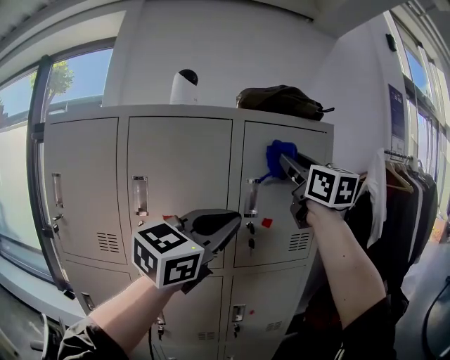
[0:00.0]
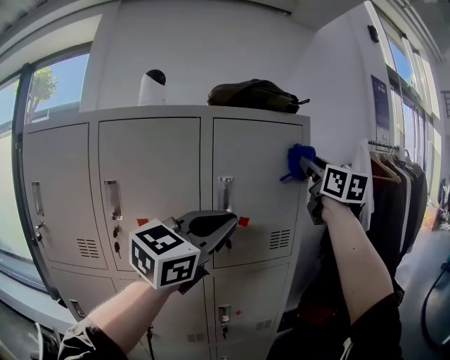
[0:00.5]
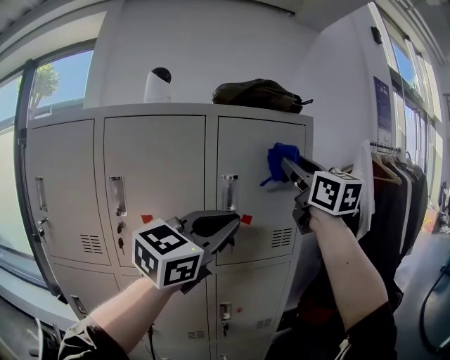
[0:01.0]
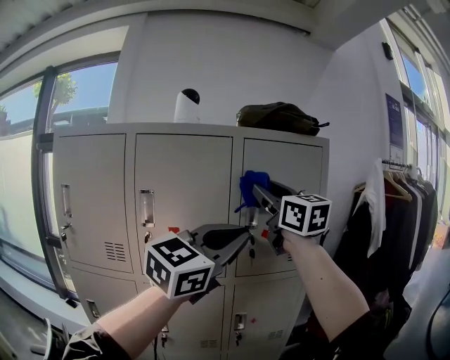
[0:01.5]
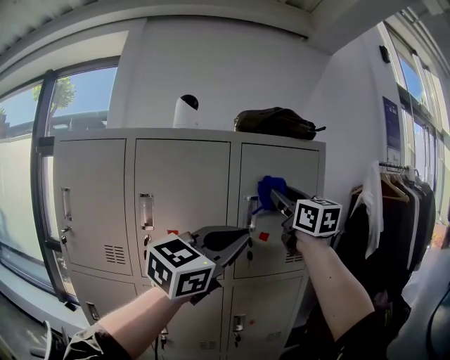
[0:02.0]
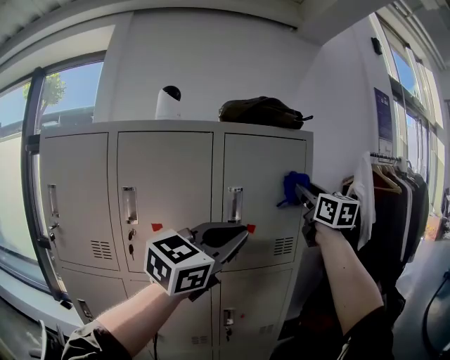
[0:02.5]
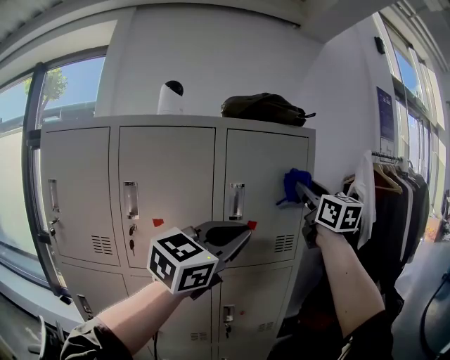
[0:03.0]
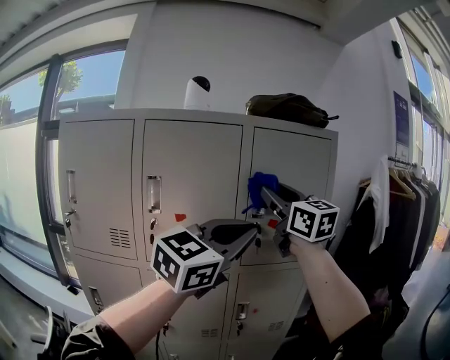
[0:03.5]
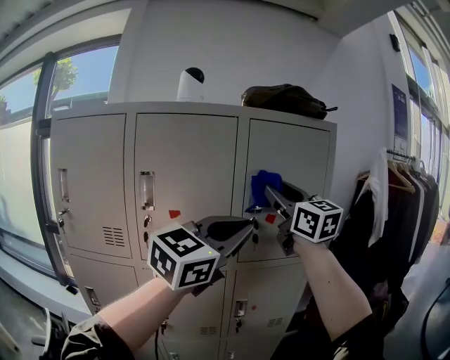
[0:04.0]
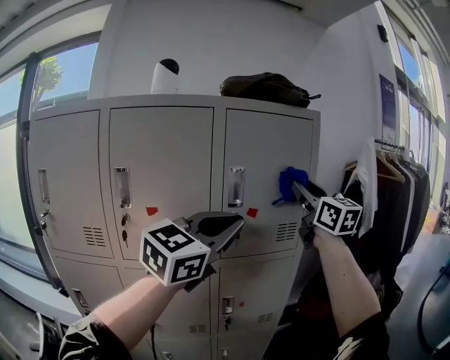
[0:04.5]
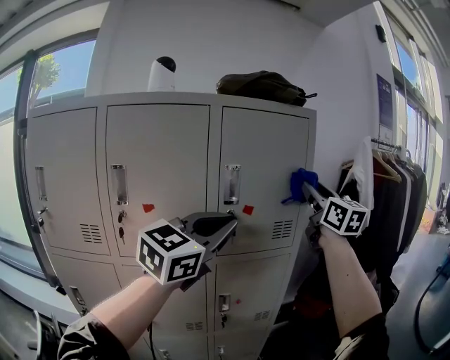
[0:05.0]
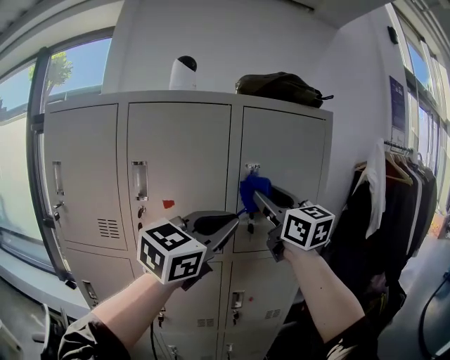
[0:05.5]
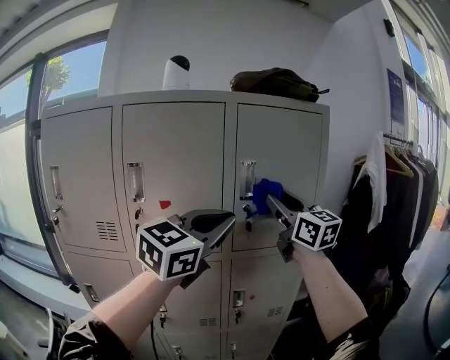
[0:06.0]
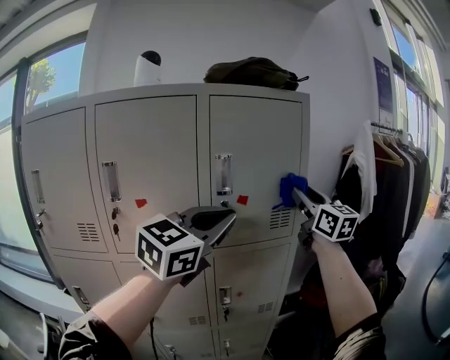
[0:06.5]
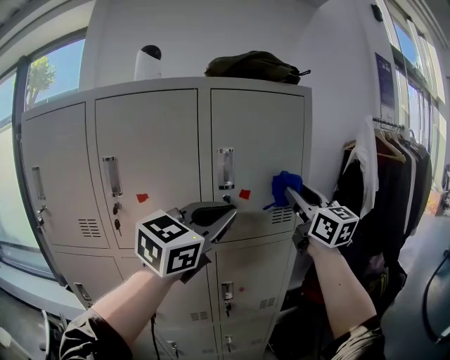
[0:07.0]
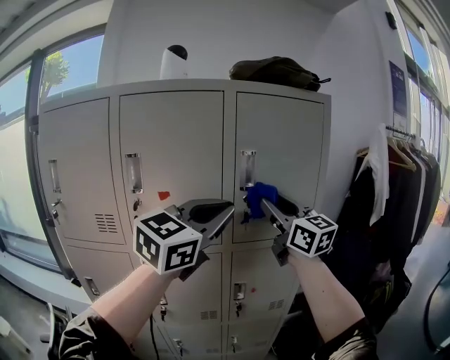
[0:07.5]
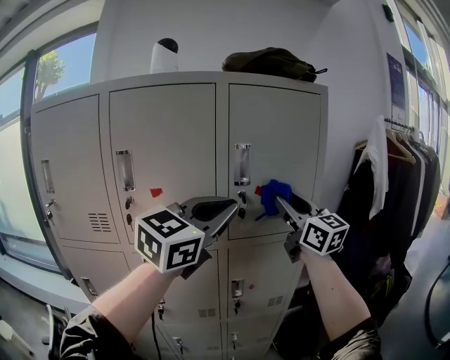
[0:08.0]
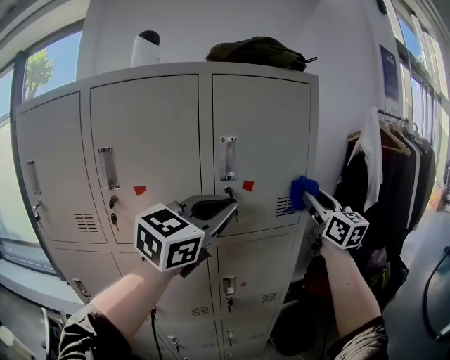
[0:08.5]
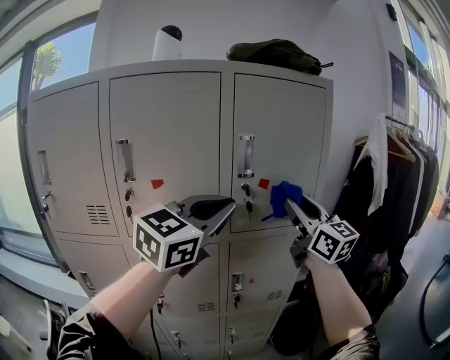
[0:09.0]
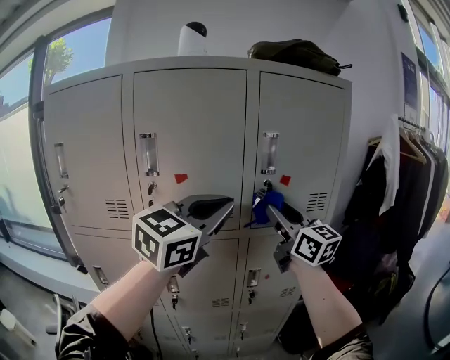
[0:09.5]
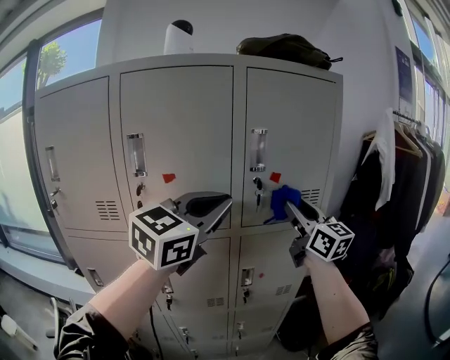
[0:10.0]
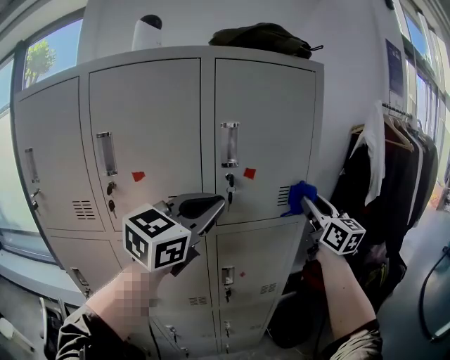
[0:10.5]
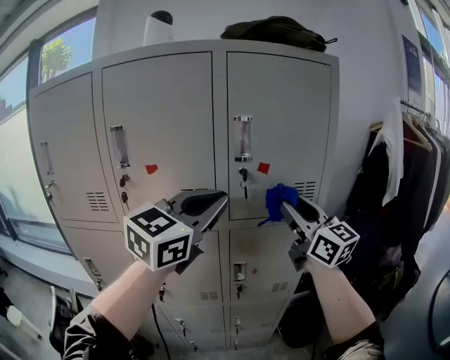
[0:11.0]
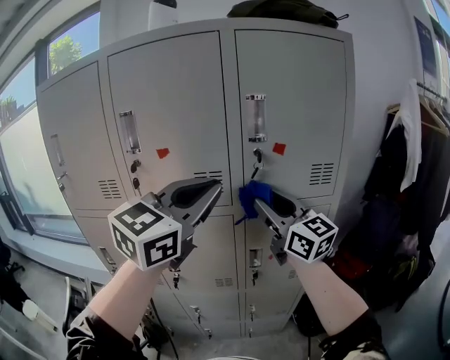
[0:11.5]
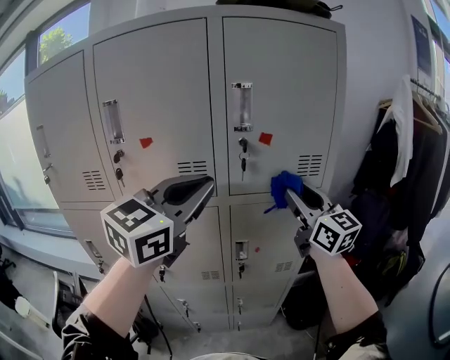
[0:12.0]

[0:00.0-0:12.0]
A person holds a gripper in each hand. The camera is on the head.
0:00.0 to 0:02.0: The right gripper swings left and right, about 20 cm each way, with 2 reversals.
0:02.0 to 0:04.0: The right gripper goes to the right and returns, roughly 10 cm each way.
0:04.0 to 0:06.0: The right gripper goes left and right, some 20 cm each way, reversing 2 times.
0:06.0 to 0:08.0: The right gripper moves left and right over roughly 15 cm, changing direction 2 times.
0:08.0 to 0:10.0: The left gripper ends up roughly 5 cm from where it was. Meanwhile the right gripper moves left and right over some 20 cm, changing direction 2 times.
0:10.0 to 0:12.0: The right gripper goes left and right, about 20 cm each way, reversing 2 times.

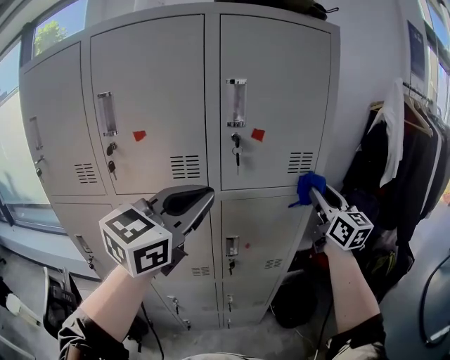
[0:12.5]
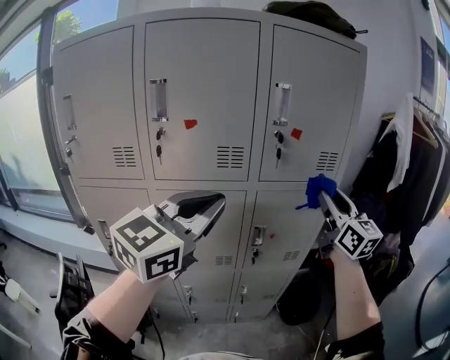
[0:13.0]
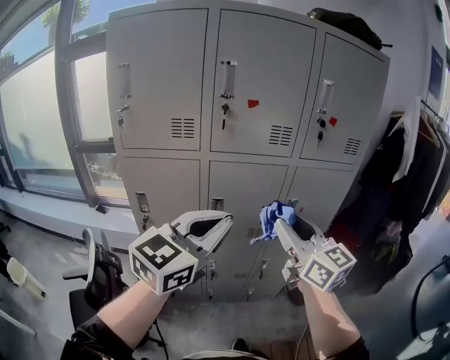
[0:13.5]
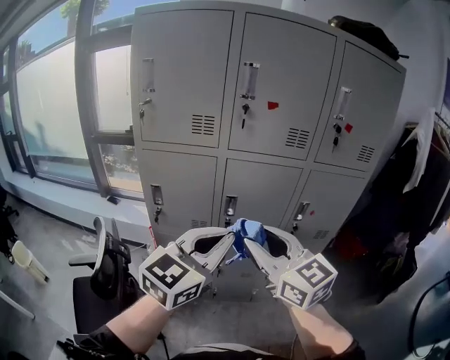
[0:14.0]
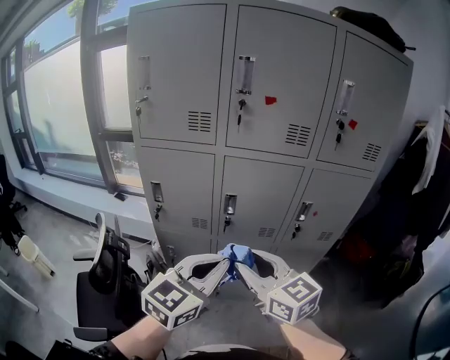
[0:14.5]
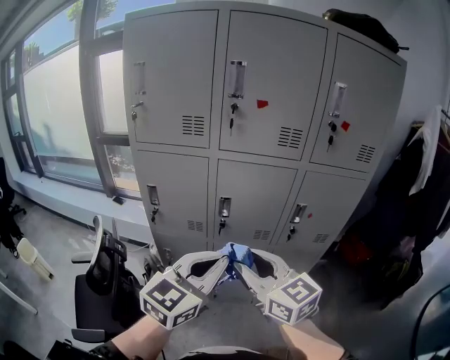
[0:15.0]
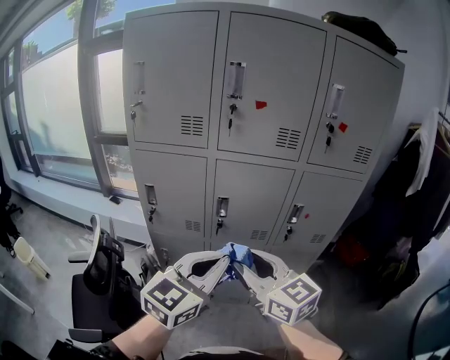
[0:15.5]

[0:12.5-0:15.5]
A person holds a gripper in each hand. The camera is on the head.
0:12.5 to 0:14.0: The left gripper goes roughly 30 cm backward, to the left and downward. Meanwhile the right gripper shifts approximately 50 cm to the left and backward, and swivels approximately 30 degrees.
0:14.0 to 0:15.5: The right gripper is displaced downward by some 5 cm, while the left gripper moves approximately 5 cm.

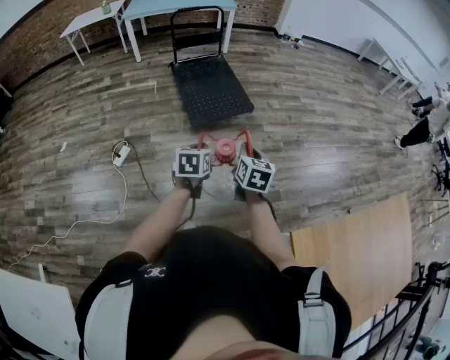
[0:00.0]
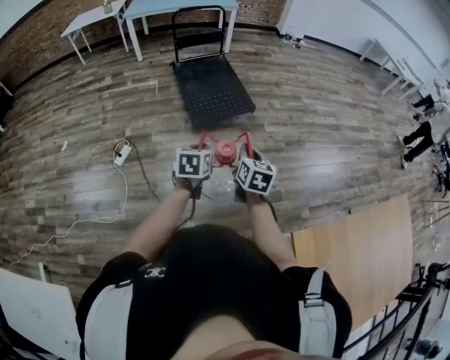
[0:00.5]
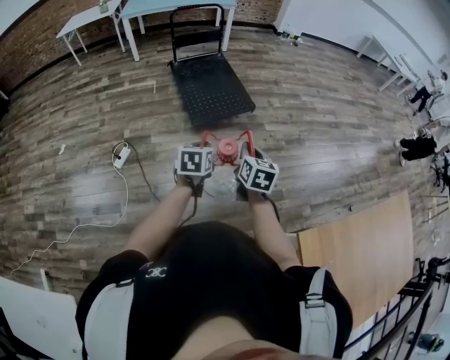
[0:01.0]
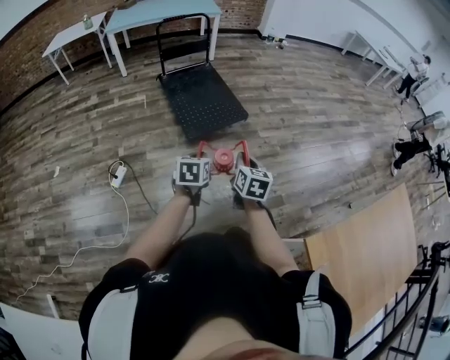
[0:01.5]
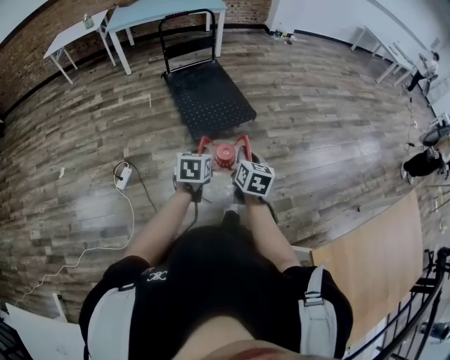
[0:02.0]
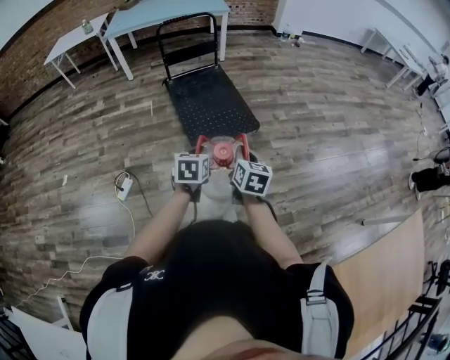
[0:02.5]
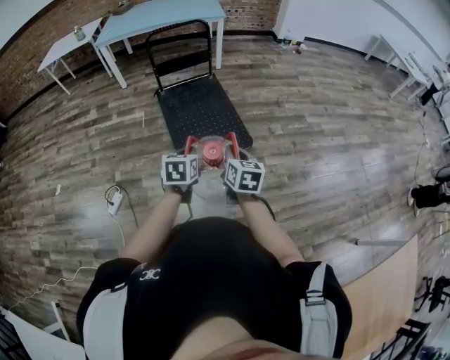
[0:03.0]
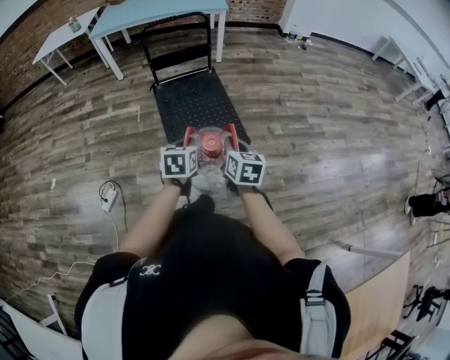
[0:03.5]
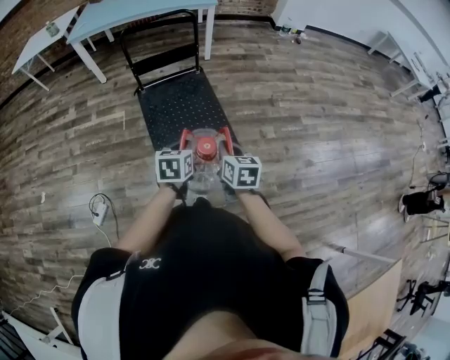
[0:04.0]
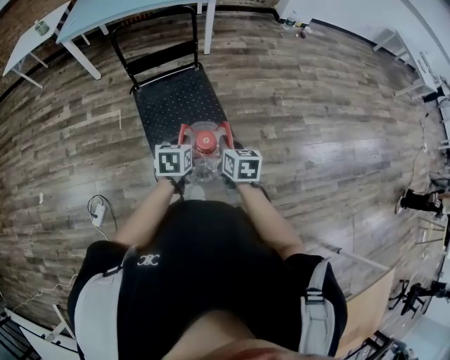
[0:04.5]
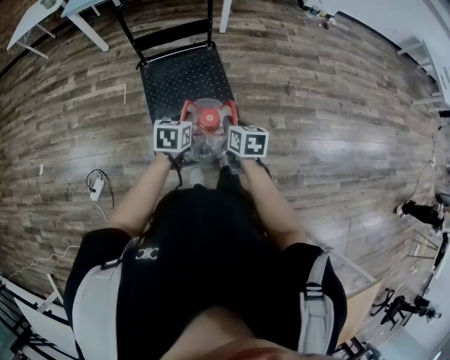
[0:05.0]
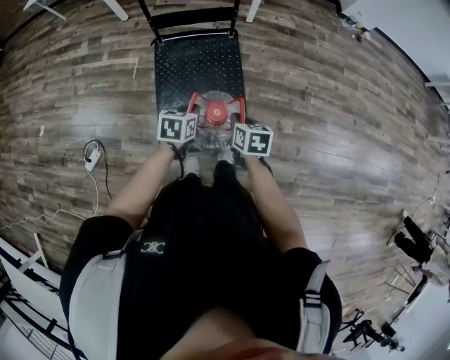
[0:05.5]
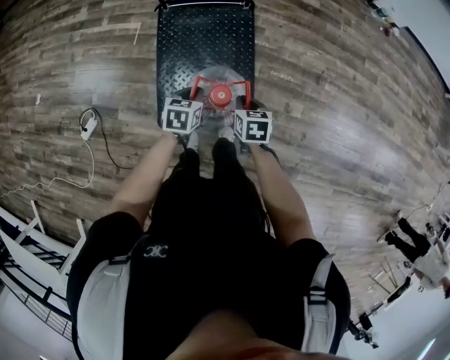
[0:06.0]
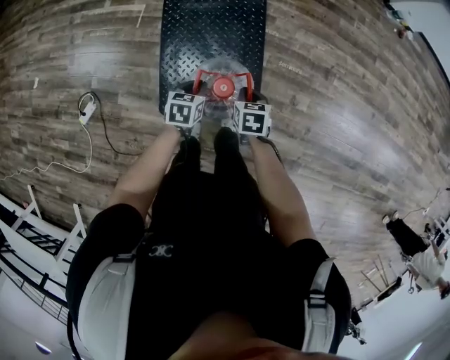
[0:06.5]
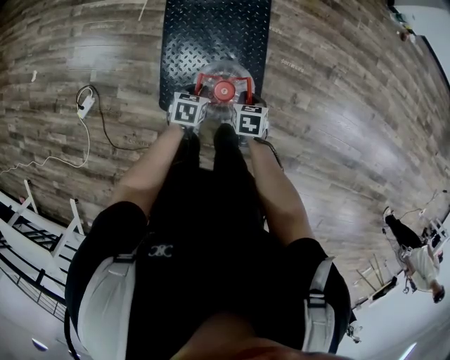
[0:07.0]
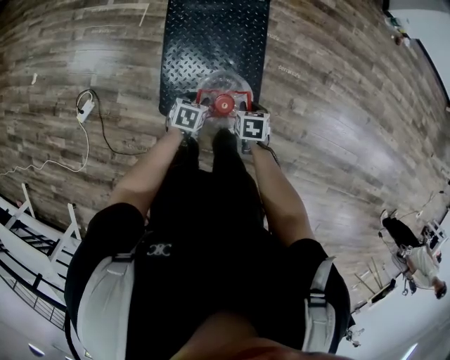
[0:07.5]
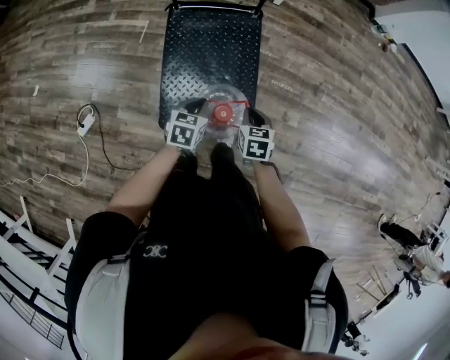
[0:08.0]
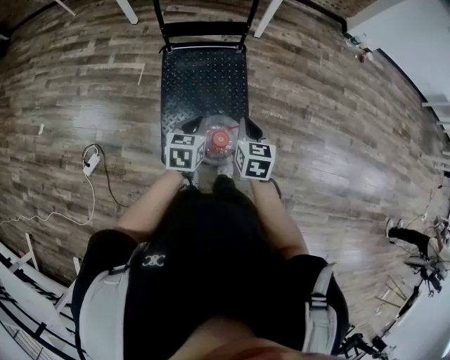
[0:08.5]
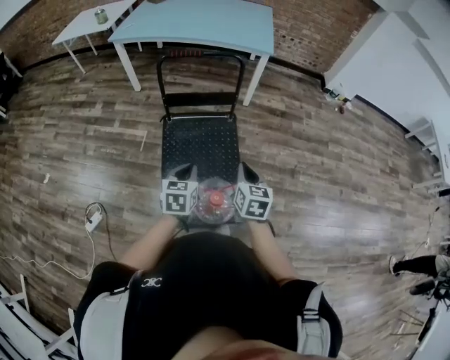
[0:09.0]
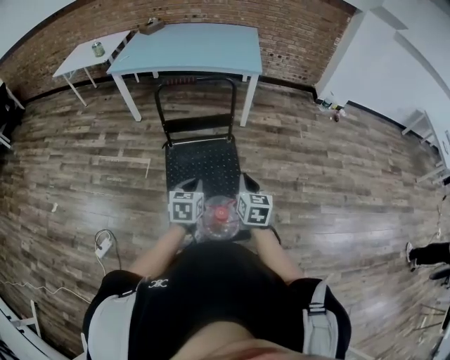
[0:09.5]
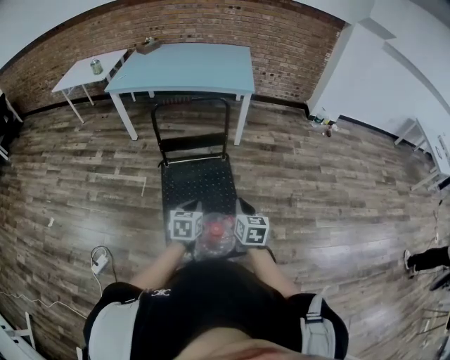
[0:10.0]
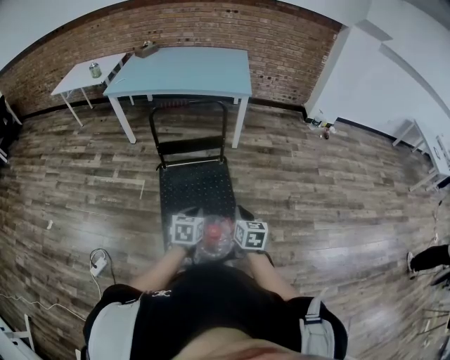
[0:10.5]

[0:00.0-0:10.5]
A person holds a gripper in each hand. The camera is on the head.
0:00.0 to 0:02.0: The grippers both shift forward and to the left by about 10 cm.
0:02.0 to 0:04.0: The two grippers travel together, forward, approximately 40 cm.
0:04.0 to 0:06.5: The right gripper shifts roughly 30 cm forward and downward, and turns by about 30 degrees; the left gripper shifts roughly 30 cm downward and forward.
0:06.5 to 0:08.5: The two grippers go roughly 20 cm upward. The right gripper changes its angle by about 20 degrees. Meanwhile the left gripper opens and closes again.
0:08.5 to 0:10.5: The right gripper moves some 5 cm.

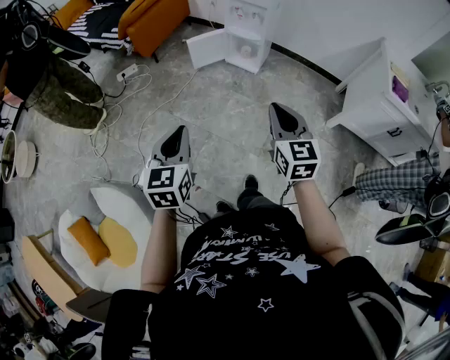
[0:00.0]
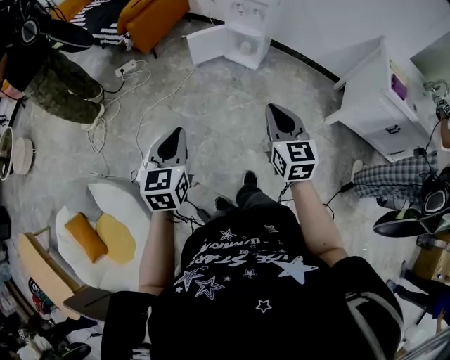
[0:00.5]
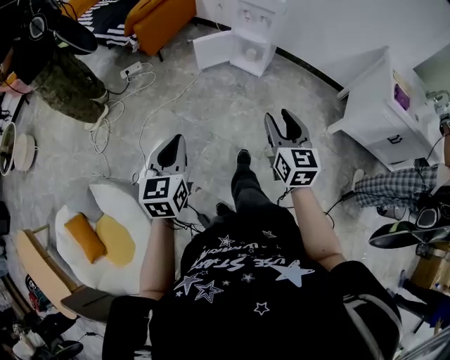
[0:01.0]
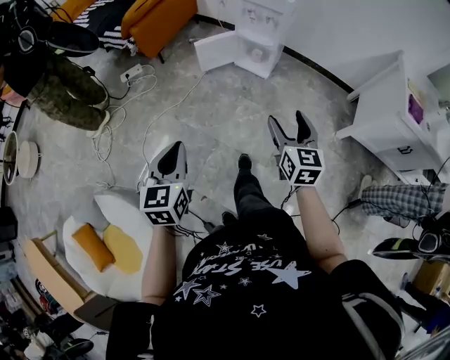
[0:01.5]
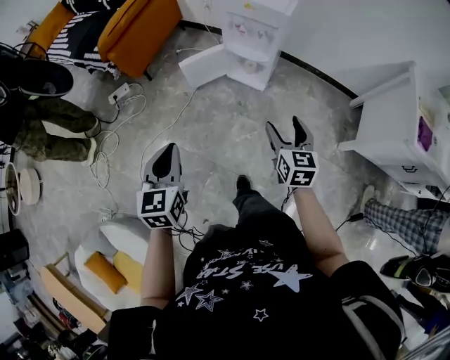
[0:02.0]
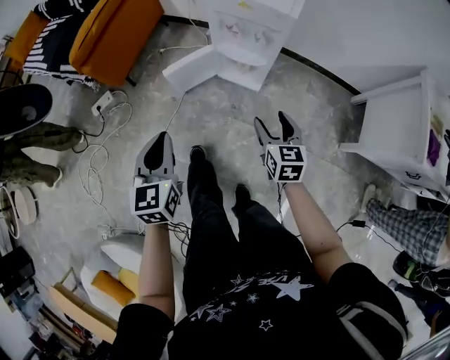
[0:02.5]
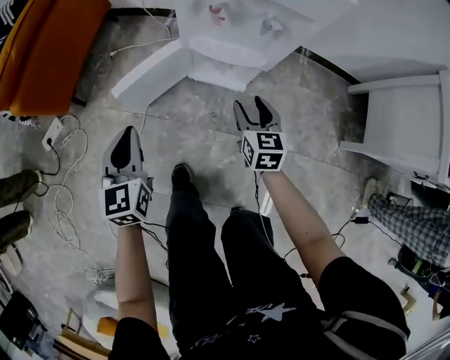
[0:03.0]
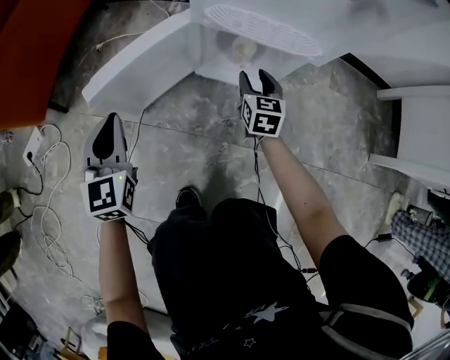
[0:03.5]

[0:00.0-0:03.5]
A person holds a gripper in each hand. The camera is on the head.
0:00.0 to 0:02.0: The right gripper travels forward and downward by about 35 cm, and opens; the left gripper goes some 30 cm forward.
0:02.0 to 0:03.5: The pair of grippers is taken forward, some 50 cm. The two grippers go roughly 50 cm downward. The right gripper closes its fingers.
